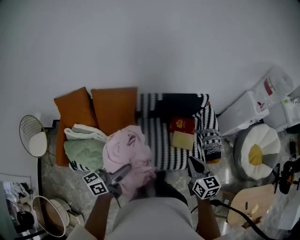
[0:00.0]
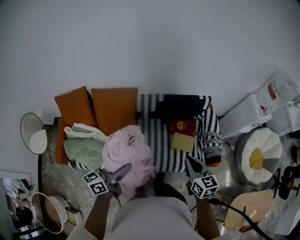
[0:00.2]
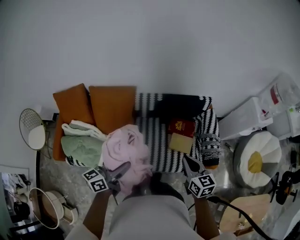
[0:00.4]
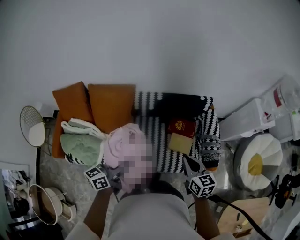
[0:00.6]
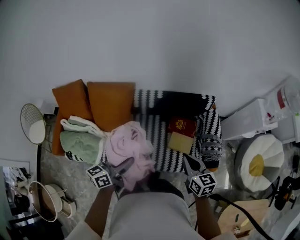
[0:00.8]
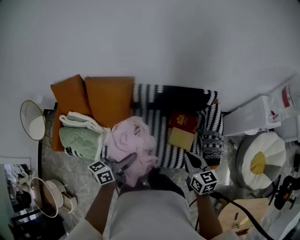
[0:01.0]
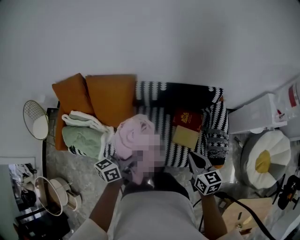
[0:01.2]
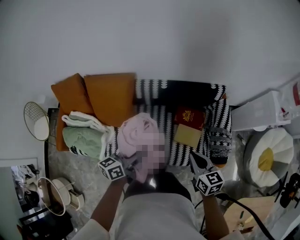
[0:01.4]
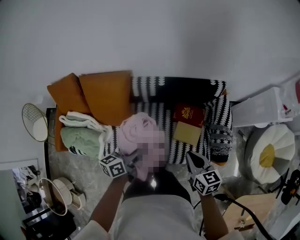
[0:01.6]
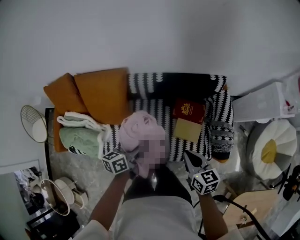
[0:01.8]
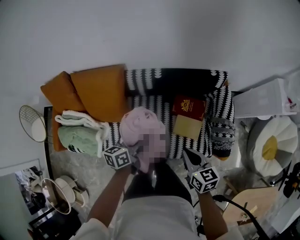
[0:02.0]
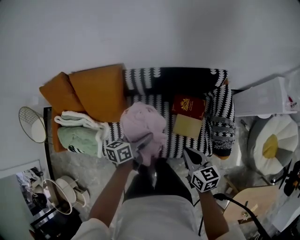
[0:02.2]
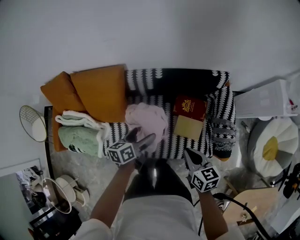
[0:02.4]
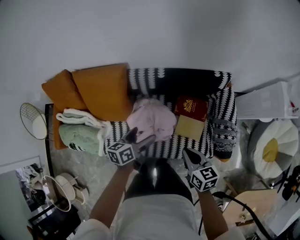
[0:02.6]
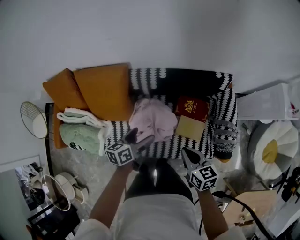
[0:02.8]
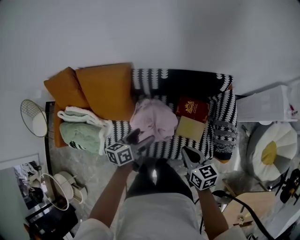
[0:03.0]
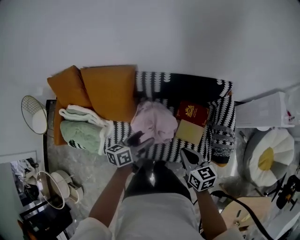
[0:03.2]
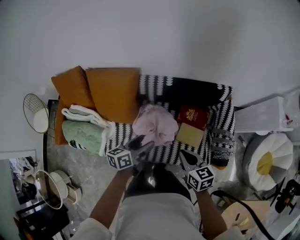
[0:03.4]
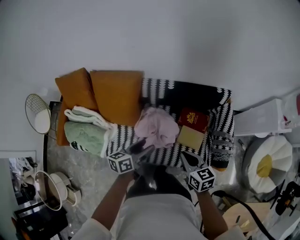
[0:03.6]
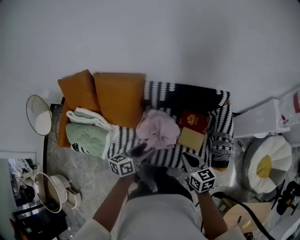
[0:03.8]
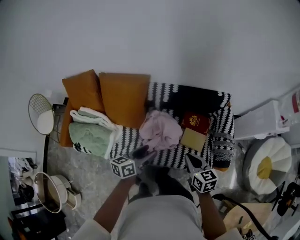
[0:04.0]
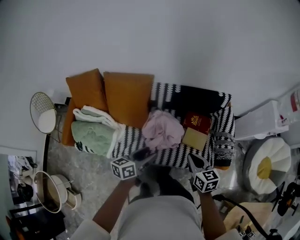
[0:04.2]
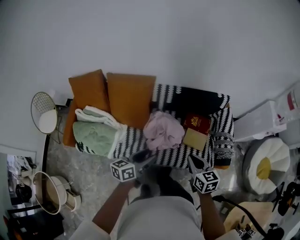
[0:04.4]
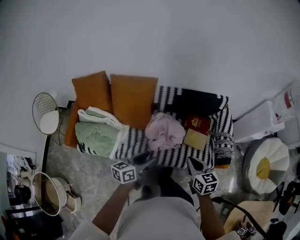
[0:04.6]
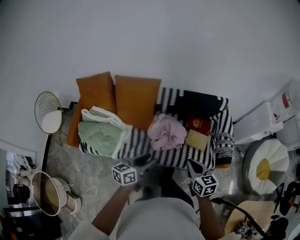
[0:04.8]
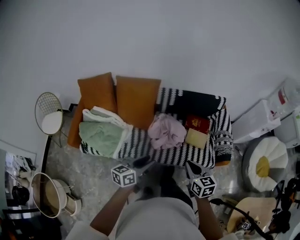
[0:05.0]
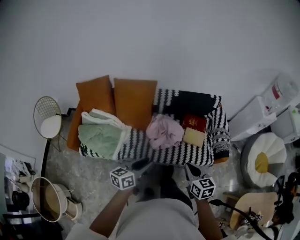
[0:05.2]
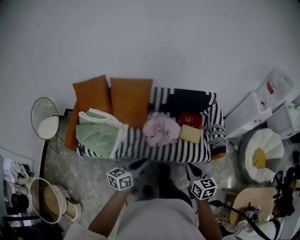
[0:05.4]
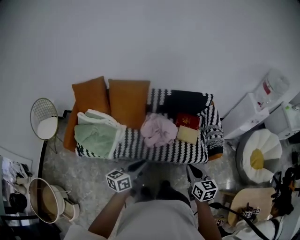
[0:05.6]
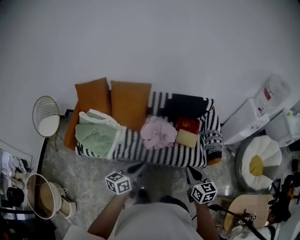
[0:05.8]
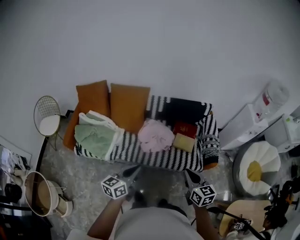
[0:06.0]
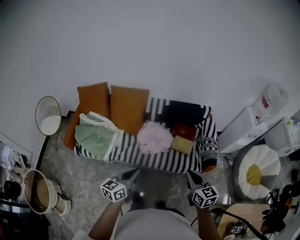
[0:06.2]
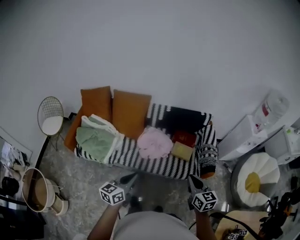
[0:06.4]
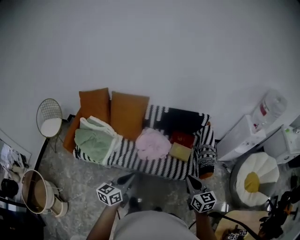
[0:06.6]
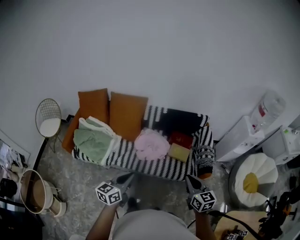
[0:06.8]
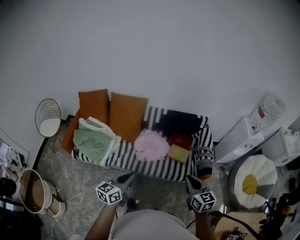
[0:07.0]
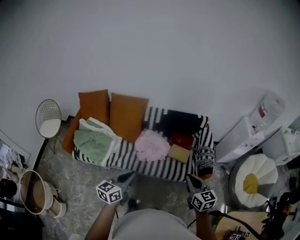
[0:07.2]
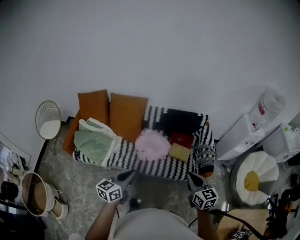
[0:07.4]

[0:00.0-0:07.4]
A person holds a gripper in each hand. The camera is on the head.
0:00.0 to 0:01.4: Both grippers move forward, downward and to the right, approximately 25 cm.
0:01.4 to 0:03.0: The right gripper moves downward, about 10 cm. Meanwhile the left gripper moves downward and forward, some 15 cm, and opens its fingers.
0:03.0 to 0:04.4: The grippers both shift backward, upward and to the left by some 25 cm. The left gripper closes.
0:04.4 to 0:06.0: The two grippers go about 25 cm backward. The left gripper closes up.
0:06.0 to 0:07.4: The right gripper heads to the right, covering approximately 5 cm.

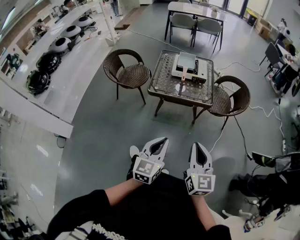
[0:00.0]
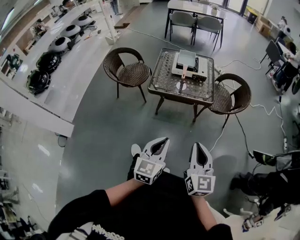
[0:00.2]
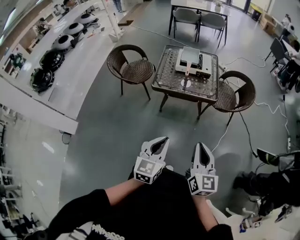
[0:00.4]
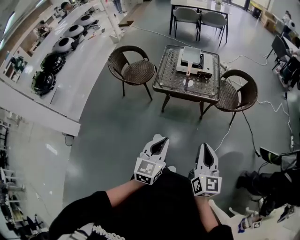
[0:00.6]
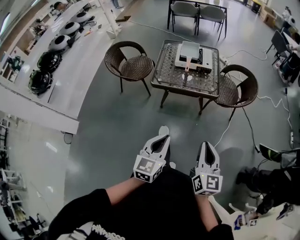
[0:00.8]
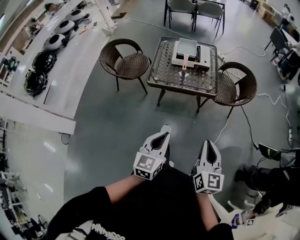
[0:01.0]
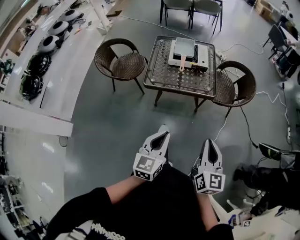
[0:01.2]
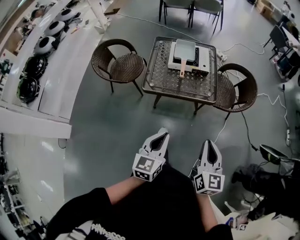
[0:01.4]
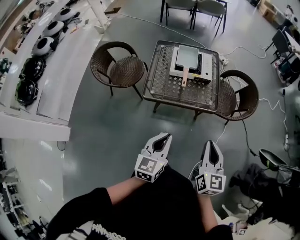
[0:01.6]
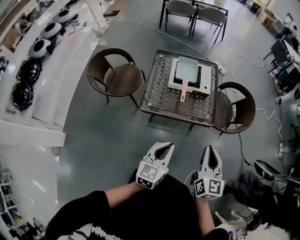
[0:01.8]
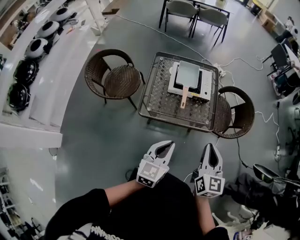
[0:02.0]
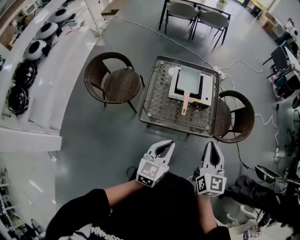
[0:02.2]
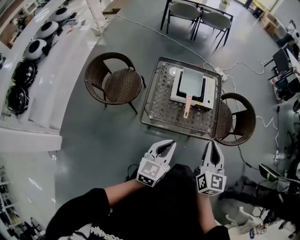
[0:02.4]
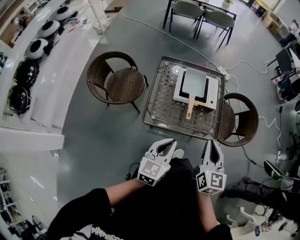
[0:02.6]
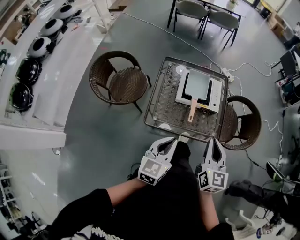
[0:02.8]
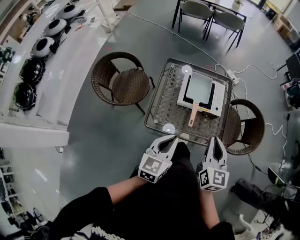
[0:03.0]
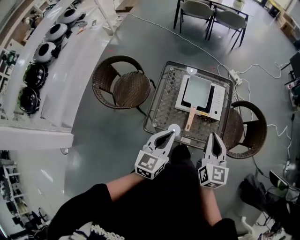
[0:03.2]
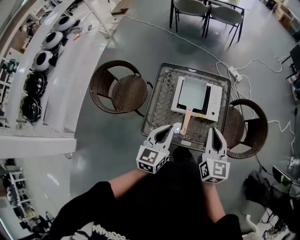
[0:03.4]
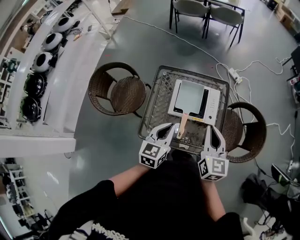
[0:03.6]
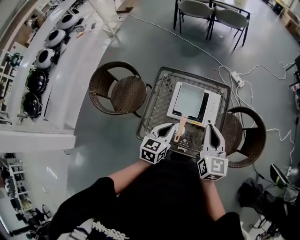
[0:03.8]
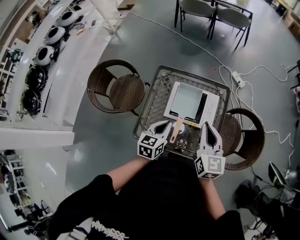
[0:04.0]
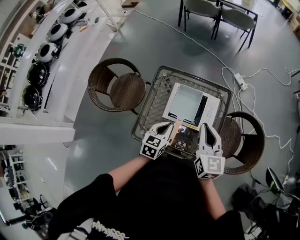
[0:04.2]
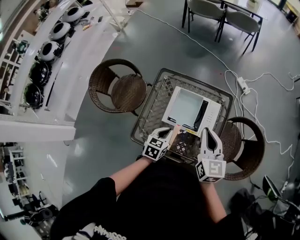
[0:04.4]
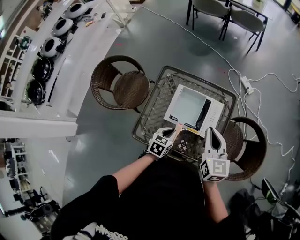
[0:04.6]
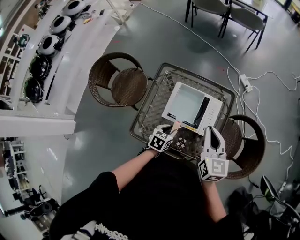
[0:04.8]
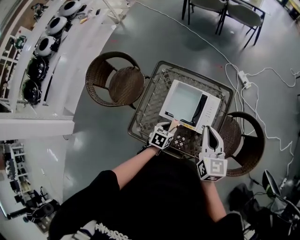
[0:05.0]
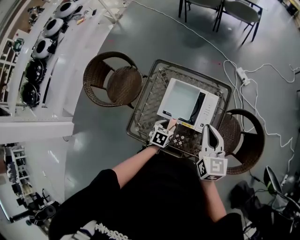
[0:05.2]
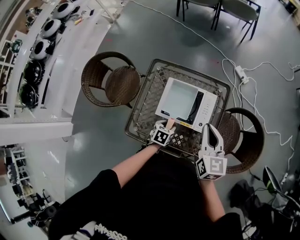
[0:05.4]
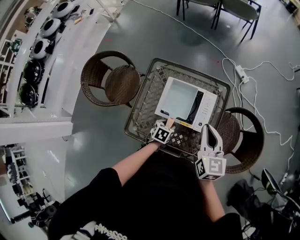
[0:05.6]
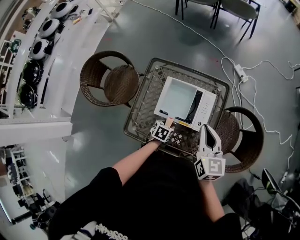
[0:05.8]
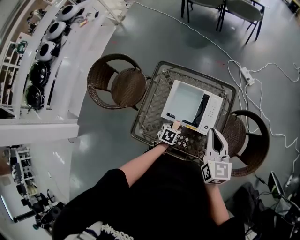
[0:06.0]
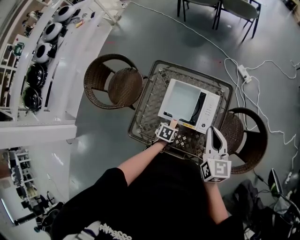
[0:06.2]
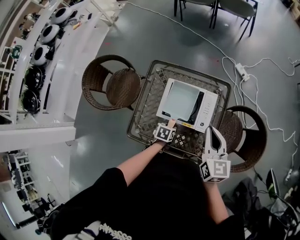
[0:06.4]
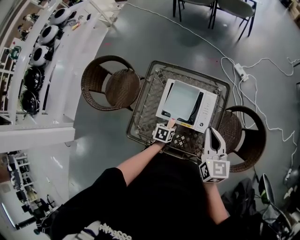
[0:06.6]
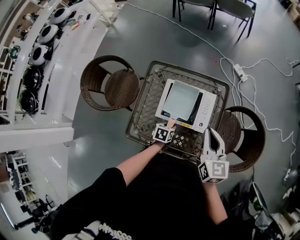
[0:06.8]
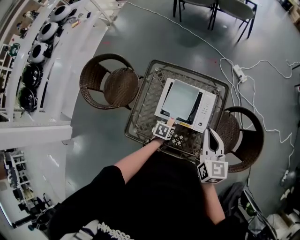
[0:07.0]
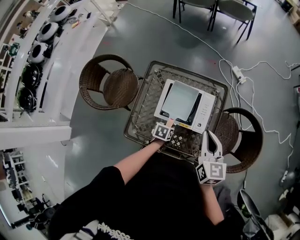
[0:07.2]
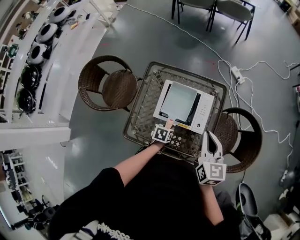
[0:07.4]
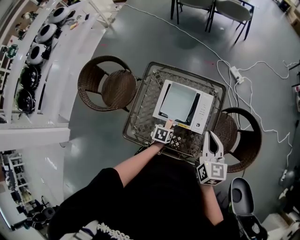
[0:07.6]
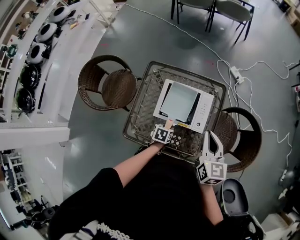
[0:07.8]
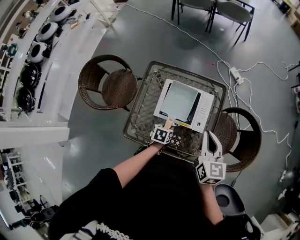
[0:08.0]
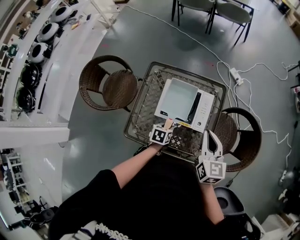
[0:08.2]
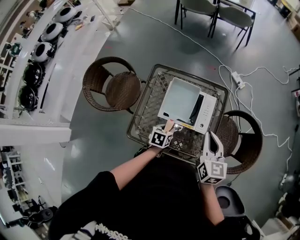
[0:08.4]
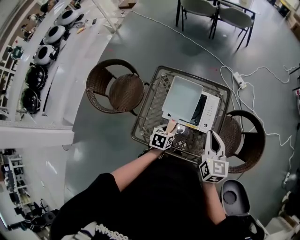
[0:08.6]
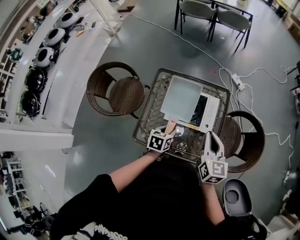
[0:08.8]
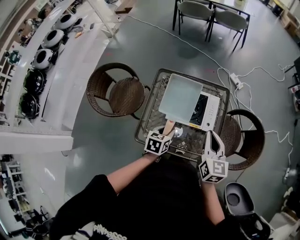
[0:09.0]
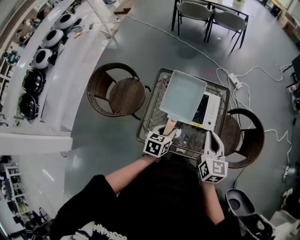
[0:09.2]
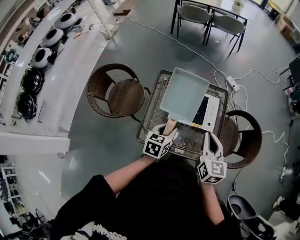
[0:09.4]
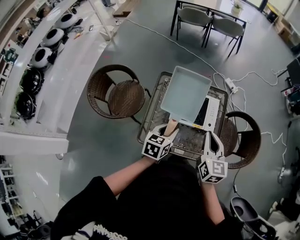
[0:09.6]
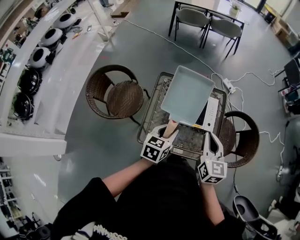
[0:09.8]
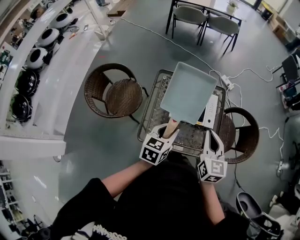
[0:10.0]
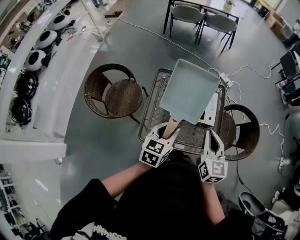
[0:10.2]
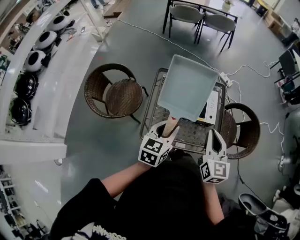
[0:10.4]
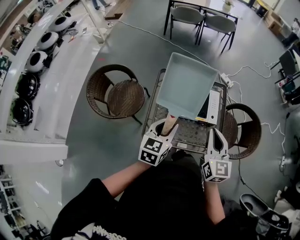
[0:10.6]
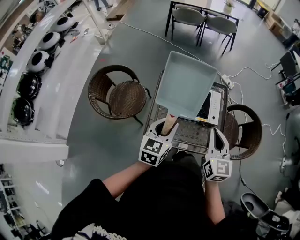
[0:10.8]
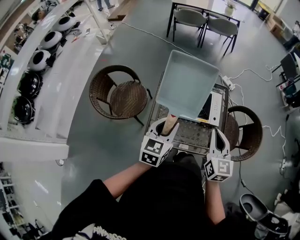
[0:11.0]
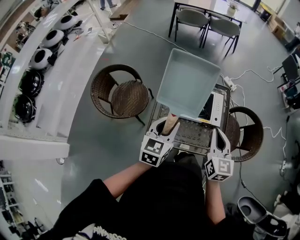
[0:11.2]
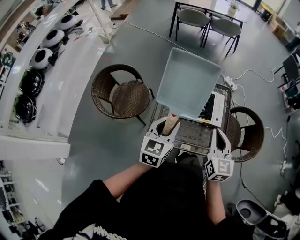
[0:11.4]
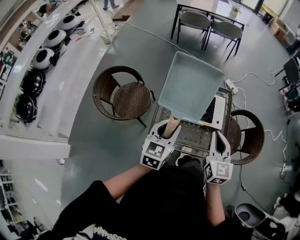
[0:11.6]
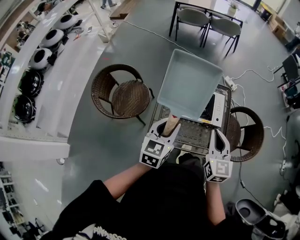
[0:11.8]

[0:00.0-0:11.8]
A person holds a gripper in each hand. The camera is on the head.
0:00.0 to 0:01.4: The two grippers go some 15 cm forward.
0:01.4 to 0:03.0: Both grippers travel together forward, about 35 cm.
0:03.0 to 0:04.4: The right gripper travels forward by roughly 25 cm; the left gripper shifts approximately 30 cm forward and downward, and swivels some 20 degrees.
0:04.4 to 0:06.0: The left gripper moves downward, roughly 15 cm, swivels approximately 20 degrees, and opens its fingers.
0:06.0 to 0:07.4: The grippers move only a little.
0:07.4 to 0:08.8: The left gripper travels upward by some 15 cm. Meanwhile the right gripper shifts some 5 cm backward.
0:08.8 to 0:10.4: The left gripper moves upward, backward and to the left, roughly 20 cm, and rotates approximately 30 degrees; the right gripper shifts approximately 15 cm backward, to the left and upward.
0:10.4 to 0:11.8: The left gripper moves to the left, some 5 cm.

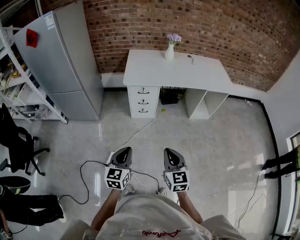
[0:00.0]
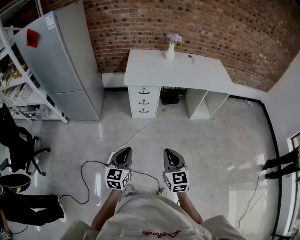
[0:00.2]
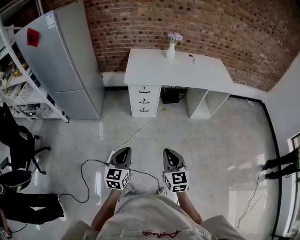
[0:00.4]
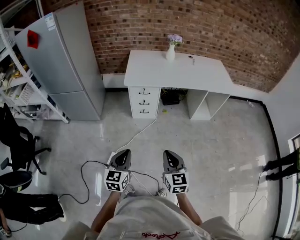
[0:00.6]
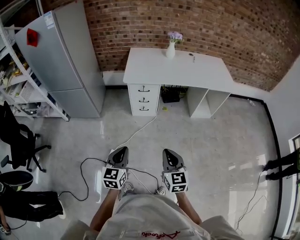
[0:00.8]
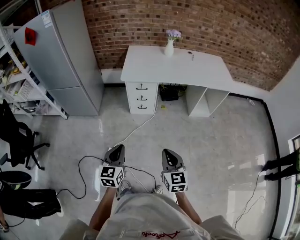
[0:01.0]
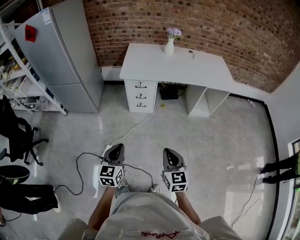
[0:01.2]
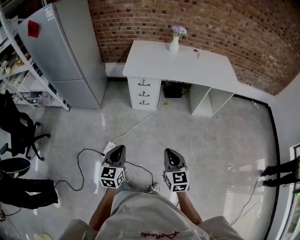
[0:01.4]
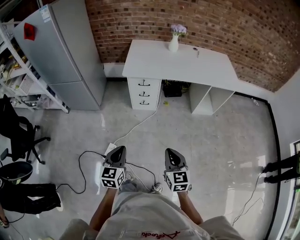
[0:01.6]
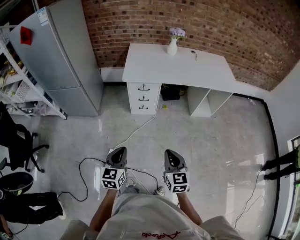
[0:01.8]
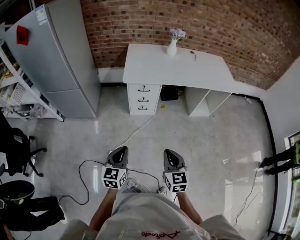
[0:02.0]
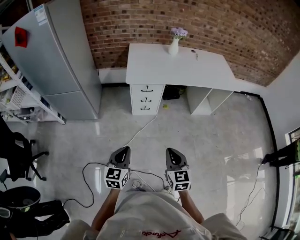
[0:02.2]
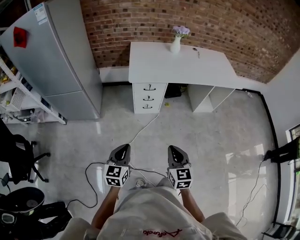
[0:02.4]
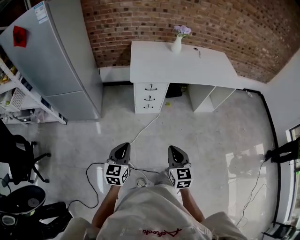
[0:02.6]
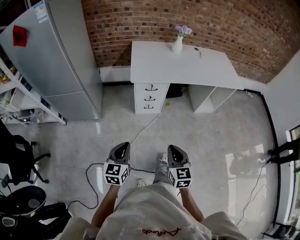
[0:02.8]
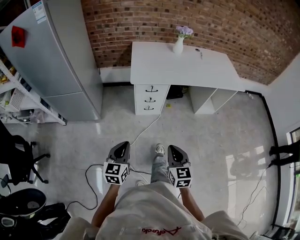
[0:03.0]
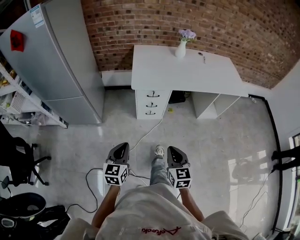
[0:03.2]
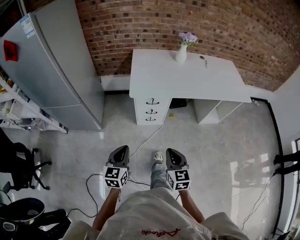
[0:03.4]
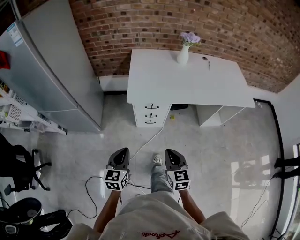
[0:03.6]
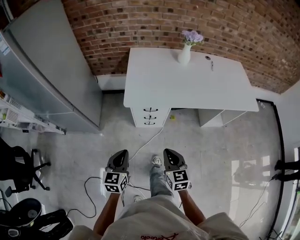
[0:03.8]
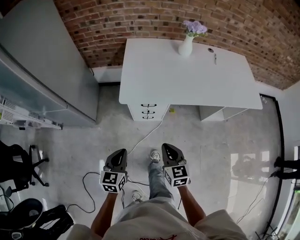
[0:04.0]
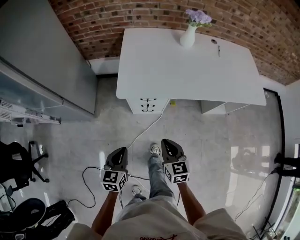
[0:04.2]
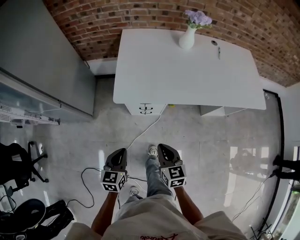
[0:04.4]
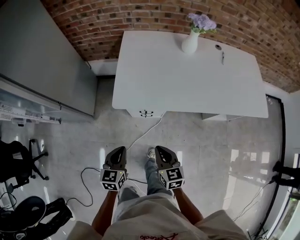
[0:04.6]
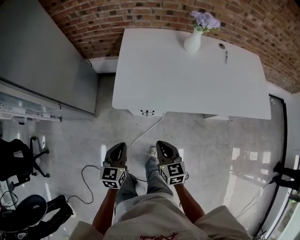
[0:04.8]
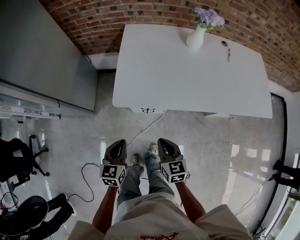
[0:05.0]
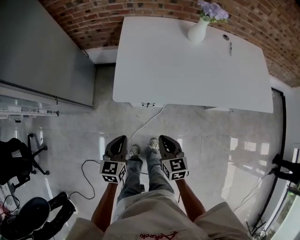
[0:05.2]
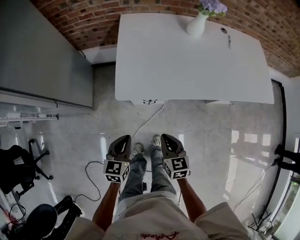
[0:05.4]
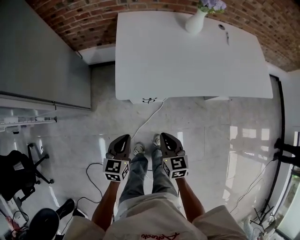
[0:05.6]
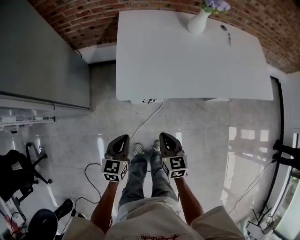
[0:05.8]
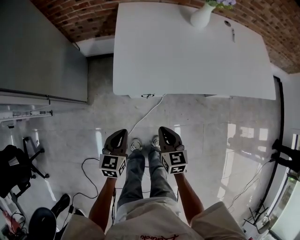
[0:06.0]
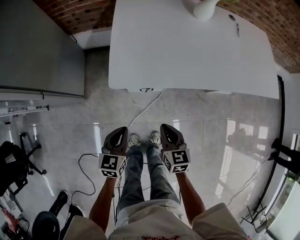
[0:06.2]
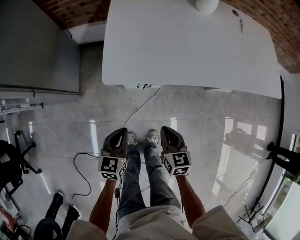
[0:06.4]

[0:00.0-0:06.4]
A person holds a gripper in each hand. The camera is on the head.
0:00.0 to 0:01.6: The right gripper heads to the right, covering about 5 cm.
0:01.6 to 0:03.2: Both grippers move to the left and forward, roughly 20 cm.
0:03.2 to 0:04.8: The two grippers go about 30 cm forward.
0:04.8 to 0:06.4: Both grippers travel together downward, some 15 cm.
